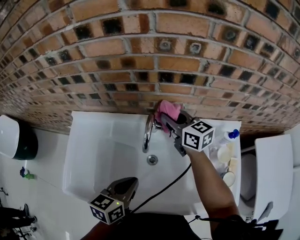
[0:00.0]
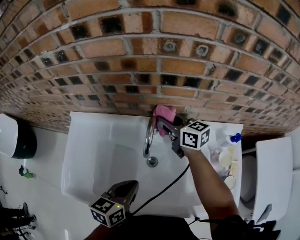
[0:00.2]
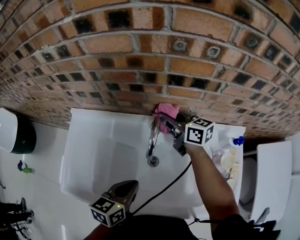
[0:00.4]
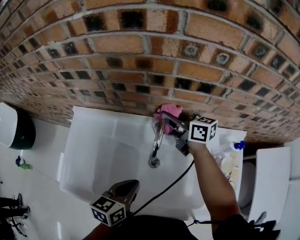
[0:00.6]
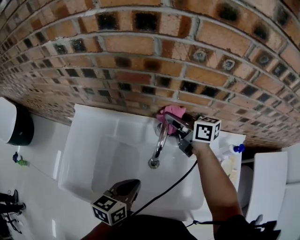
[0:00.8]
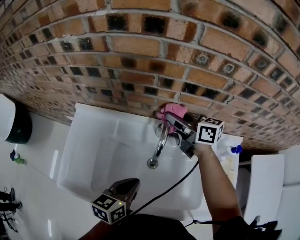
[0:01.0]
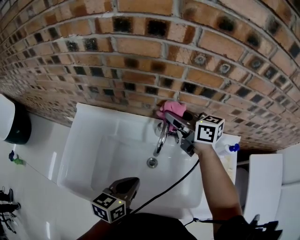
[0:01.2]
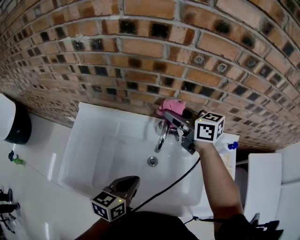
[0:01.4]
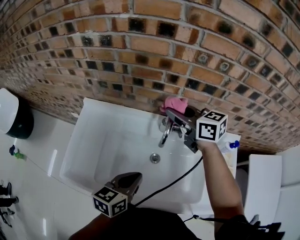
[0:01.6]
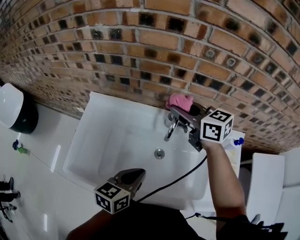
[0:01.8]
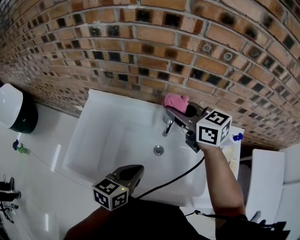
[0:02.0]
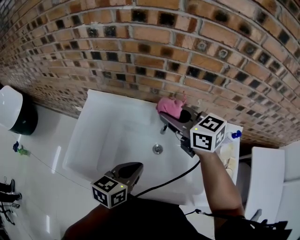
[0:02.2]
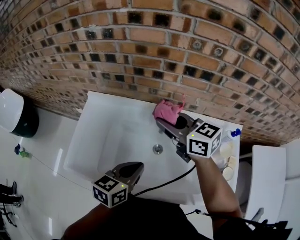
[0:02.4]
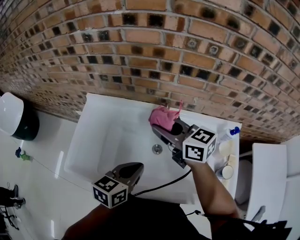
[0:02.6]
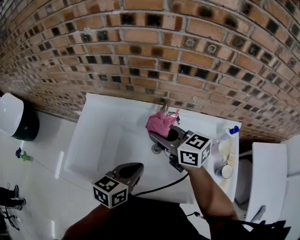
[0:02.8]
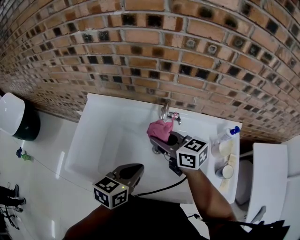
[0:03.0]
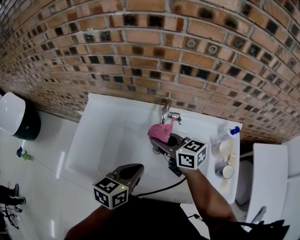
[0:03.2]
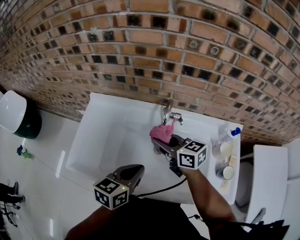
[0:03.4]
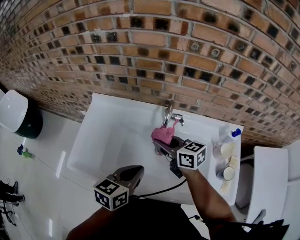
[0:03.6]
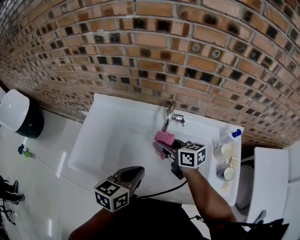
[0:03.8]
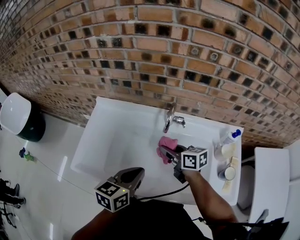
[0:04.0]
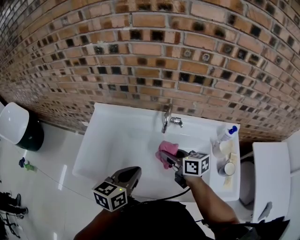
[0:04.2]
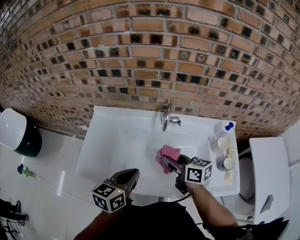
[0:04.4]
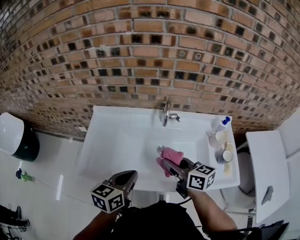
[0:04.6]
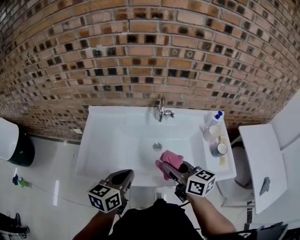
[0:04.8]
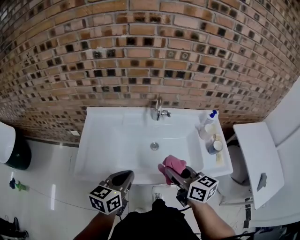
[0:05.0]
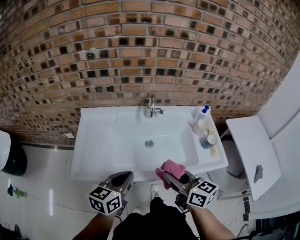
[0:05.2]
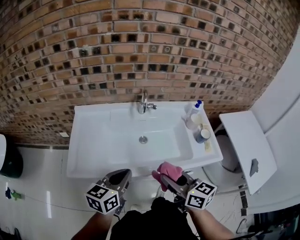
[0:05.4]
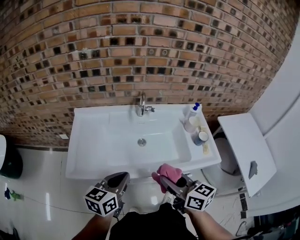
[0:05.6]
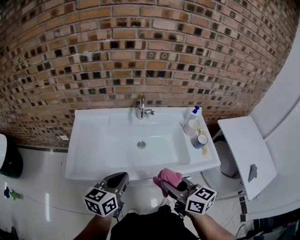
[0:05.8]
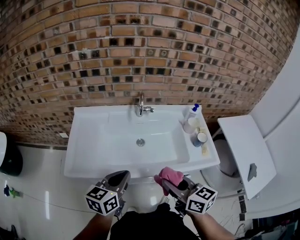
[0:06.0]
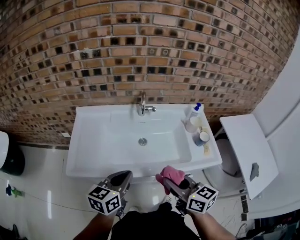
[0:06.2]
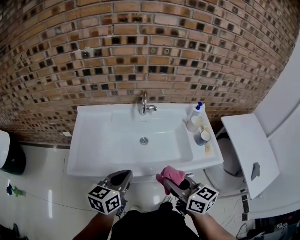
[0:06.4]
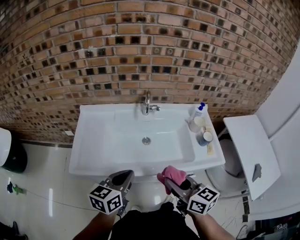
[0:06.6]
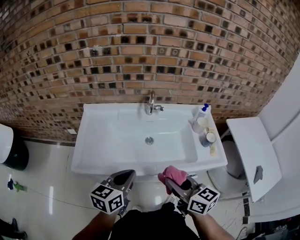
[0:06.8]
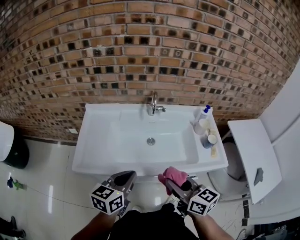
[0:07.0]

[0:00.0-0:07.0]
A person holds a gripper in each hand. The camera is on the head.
0:00.0 to 0:01.4: The right gripper travels upward and to the left by approximately 10 cm.
0:01.4 to 0:02.8: The right gripper heads backward and to the left, covering roughly 15 cm.
0:02.8 to 0:04.2: The left gripper changes place by about 5 cm; the right gripper moves downward and backward, roughly 10 cm, and swivels approximately 20 degrees.
0:04.2 to 0:05.6: The right gripper moves backward, some 25 cm, and rotates roughly 20 degrees, while the left gripper travels backward by some 15 cm.
0:05.6 to 0:07.0: The grippers make only small movements.

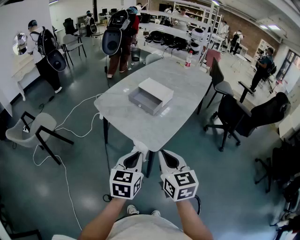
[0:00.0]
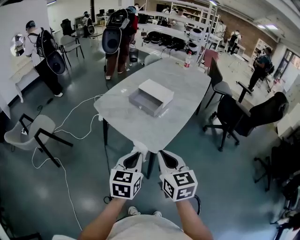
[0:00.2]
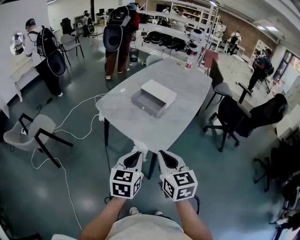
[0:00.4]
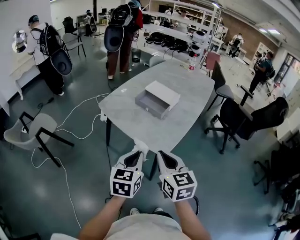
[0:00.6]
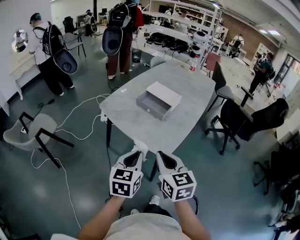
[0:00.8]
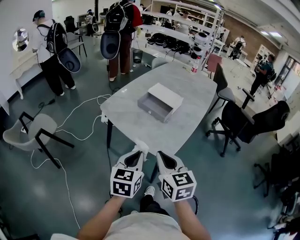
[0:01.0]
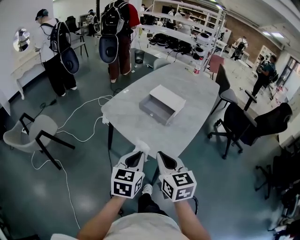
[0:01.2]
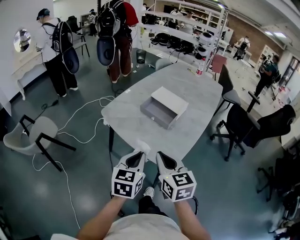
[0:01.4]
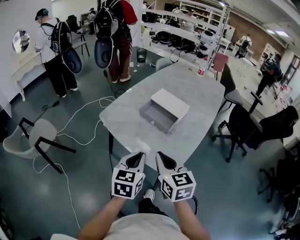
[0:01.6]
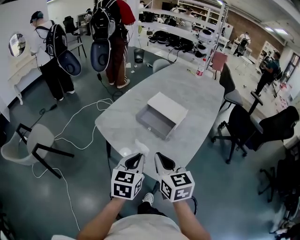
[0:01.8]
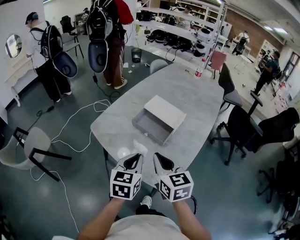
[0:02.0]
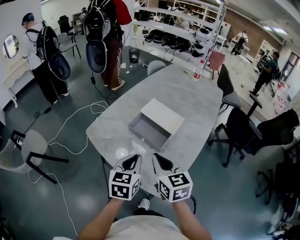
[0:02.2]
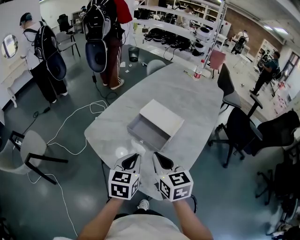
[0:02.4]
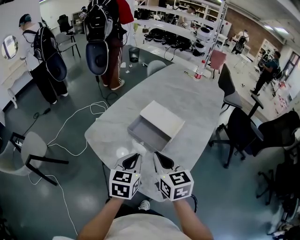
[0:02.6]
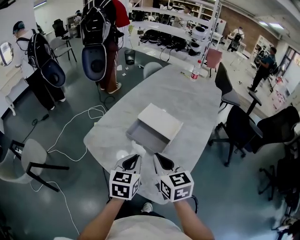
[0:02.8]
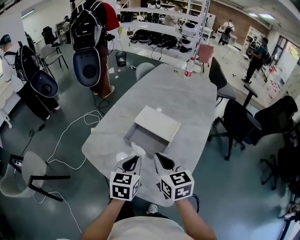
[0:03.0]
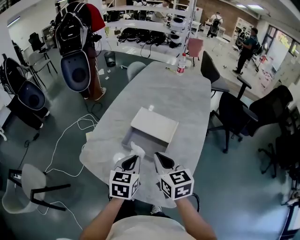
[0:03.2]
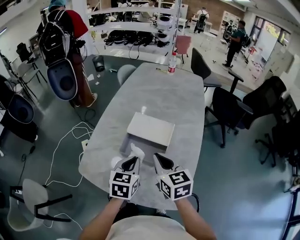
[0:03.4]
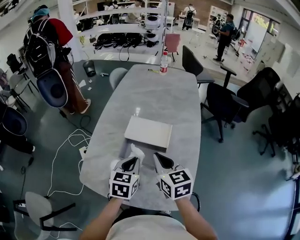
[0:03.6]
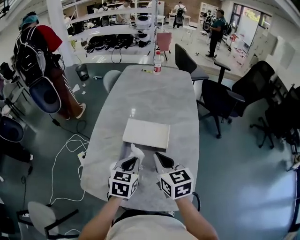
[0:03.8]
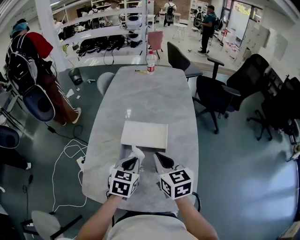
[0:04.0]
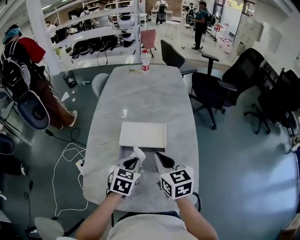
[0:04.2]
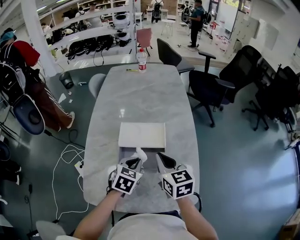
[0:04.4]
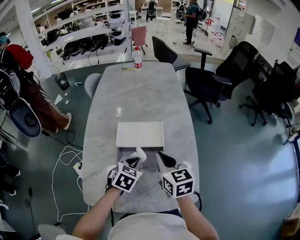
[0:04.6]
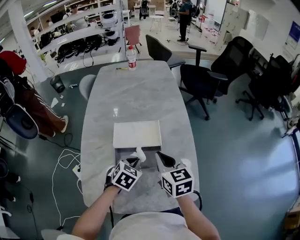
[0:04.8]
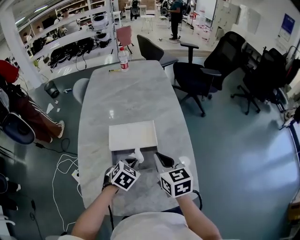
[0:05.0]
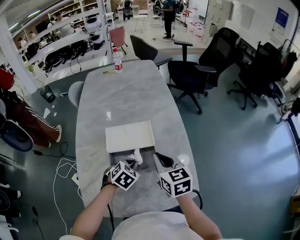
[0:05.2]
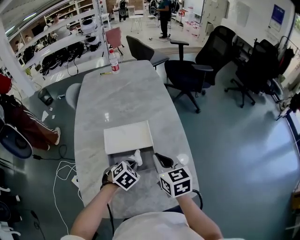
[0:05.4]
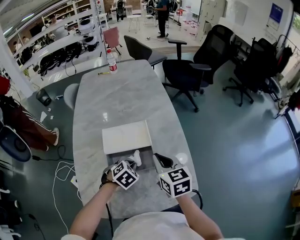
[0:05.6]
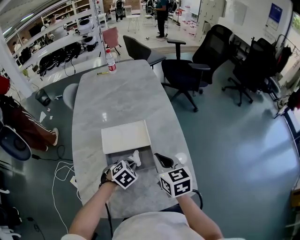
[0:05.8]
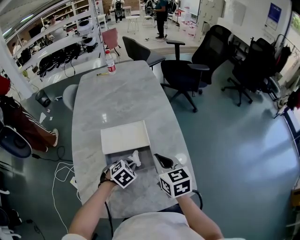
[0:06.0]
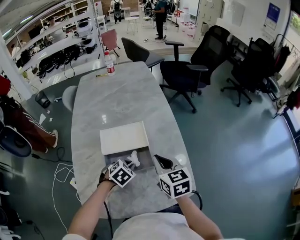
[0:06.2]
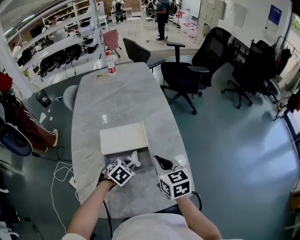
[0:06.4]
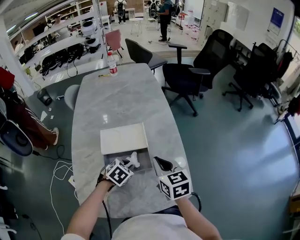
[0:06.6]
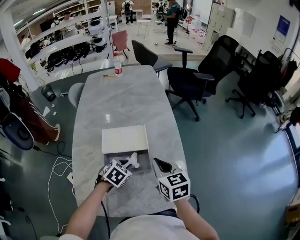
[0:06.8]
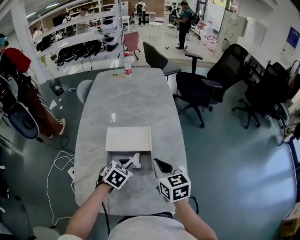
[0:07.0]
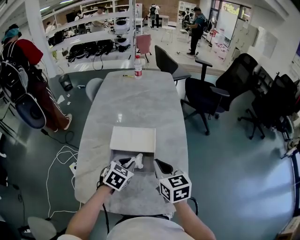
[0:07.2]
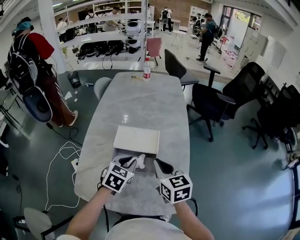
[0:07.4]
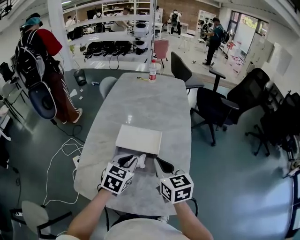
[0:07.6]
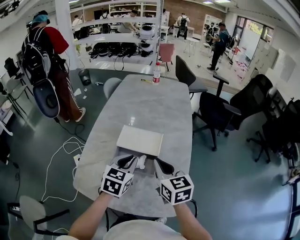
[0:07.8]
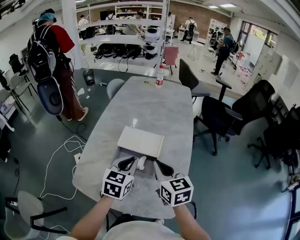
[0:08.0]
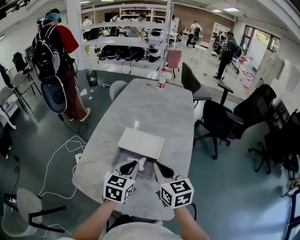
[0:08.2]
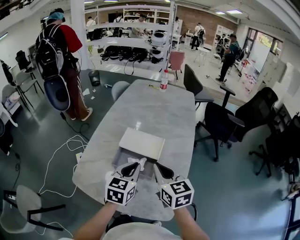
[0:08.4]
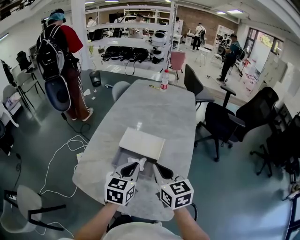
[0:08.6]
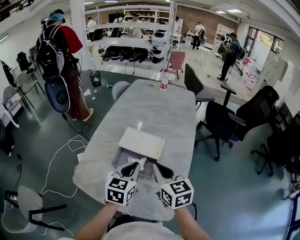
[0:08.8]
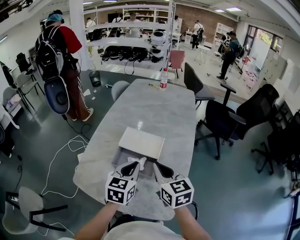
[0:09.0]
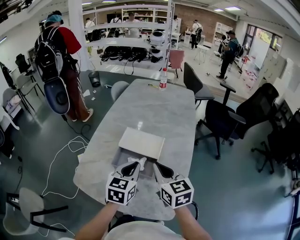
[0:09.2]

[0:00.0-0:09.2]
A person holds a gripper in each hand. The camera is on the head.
0:00.0 to 0:01.6: Both grippers travel together forward and to the left, some 20 cm.
0:01.6 to 0:03.0: The grippers both shift forward by about 20 cm.
0:03.0 to 0:04.6: The left gripper shifts by approximately 15 cm, and rotates about 50 degrees. Meanwhile the right gripper shifts by roughly 10 cm, and rotates about 30 degrees.
0:04.6 to 0:06.2: The right gripper changes place by approximately 5 cm. Meanwhile the left gripper shifts about 5 cm downward, and turns by some 30 degrees.
0:06.2 to 0:07.6: The left gripper travels upward by approximately 15 cm, and swivels approximately 50 degrees; the right gripper is displaced upward by approximately 5 cm, and rotates approximately 20 degrees.
0:07.6 to 0:09.2: The left gripper ends up approximately 5 cm from where it was, and rotates some 20 degrees.

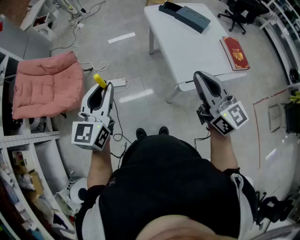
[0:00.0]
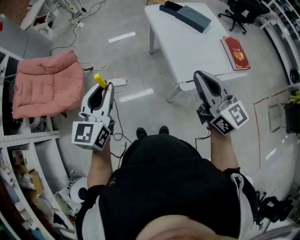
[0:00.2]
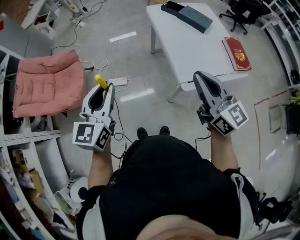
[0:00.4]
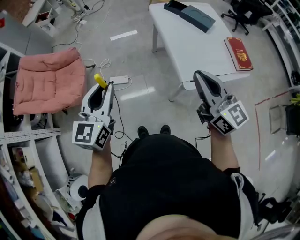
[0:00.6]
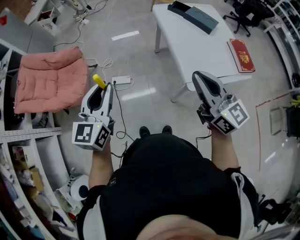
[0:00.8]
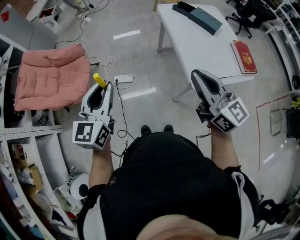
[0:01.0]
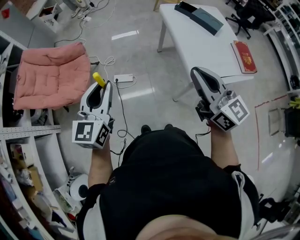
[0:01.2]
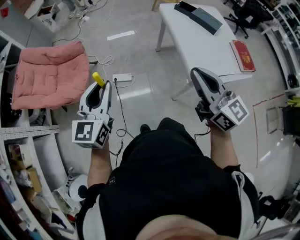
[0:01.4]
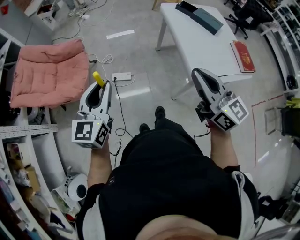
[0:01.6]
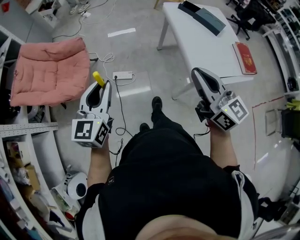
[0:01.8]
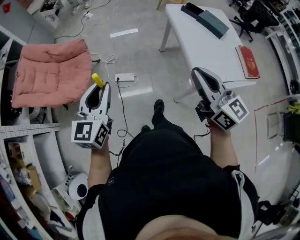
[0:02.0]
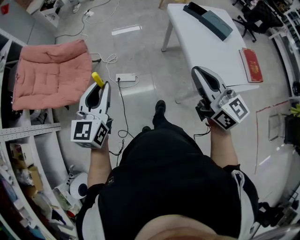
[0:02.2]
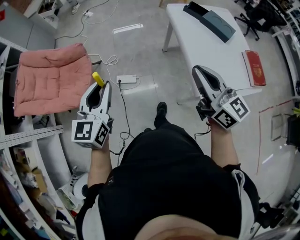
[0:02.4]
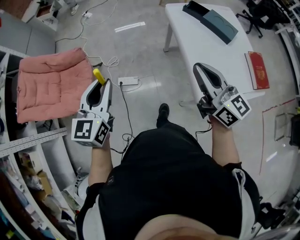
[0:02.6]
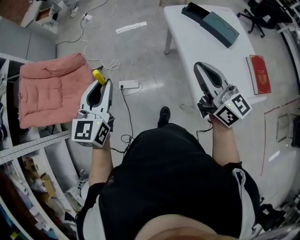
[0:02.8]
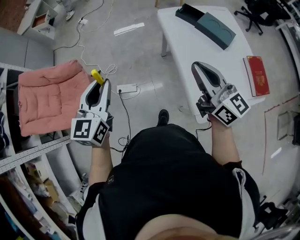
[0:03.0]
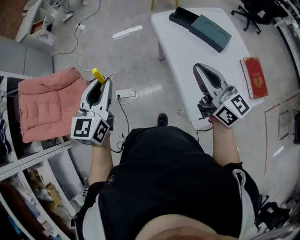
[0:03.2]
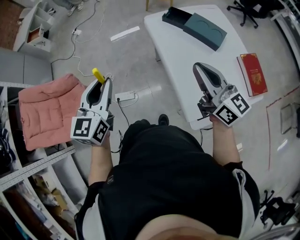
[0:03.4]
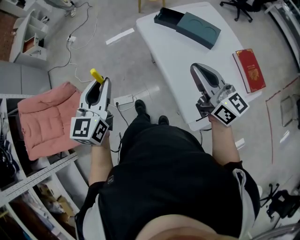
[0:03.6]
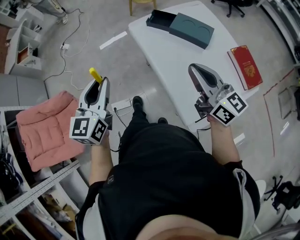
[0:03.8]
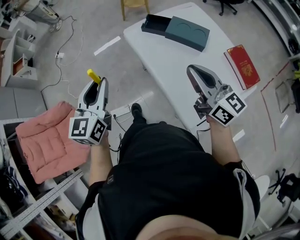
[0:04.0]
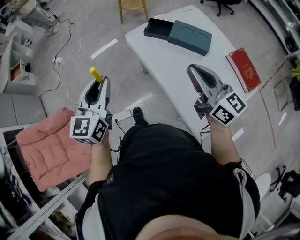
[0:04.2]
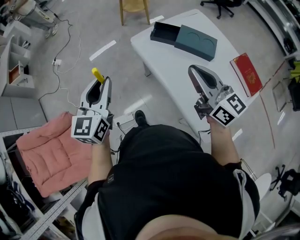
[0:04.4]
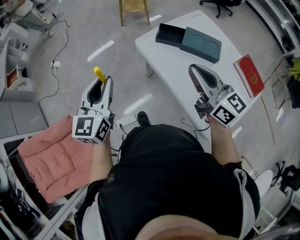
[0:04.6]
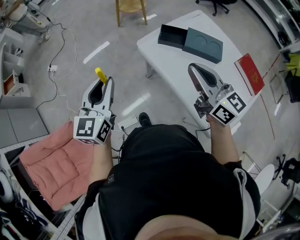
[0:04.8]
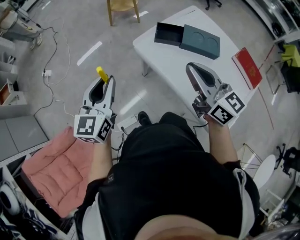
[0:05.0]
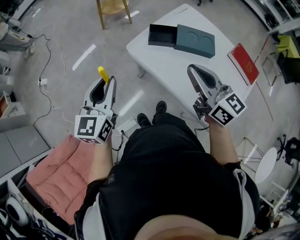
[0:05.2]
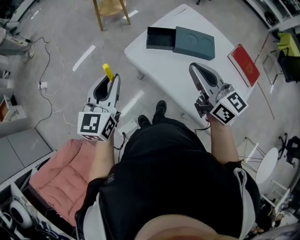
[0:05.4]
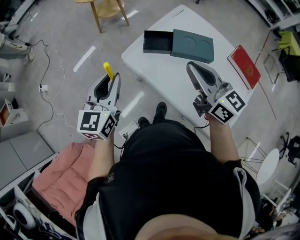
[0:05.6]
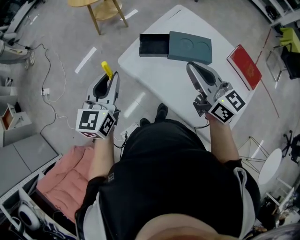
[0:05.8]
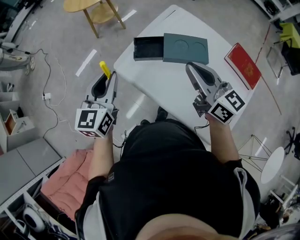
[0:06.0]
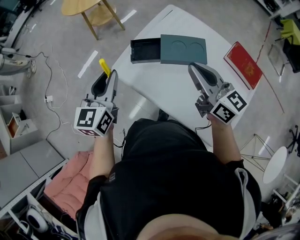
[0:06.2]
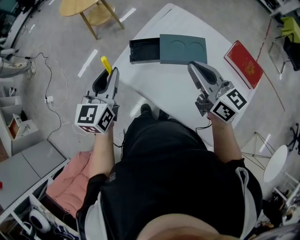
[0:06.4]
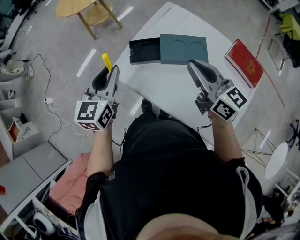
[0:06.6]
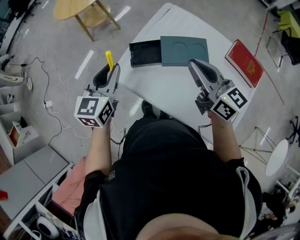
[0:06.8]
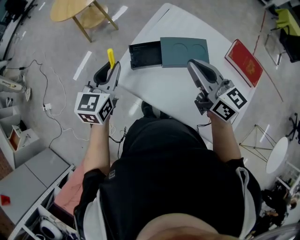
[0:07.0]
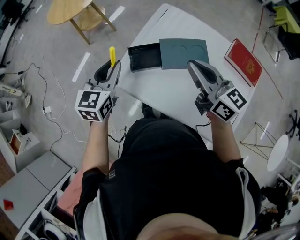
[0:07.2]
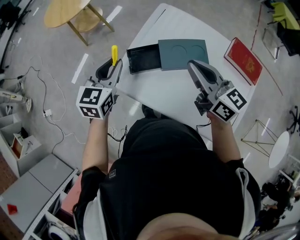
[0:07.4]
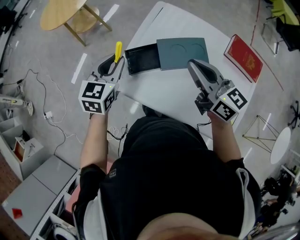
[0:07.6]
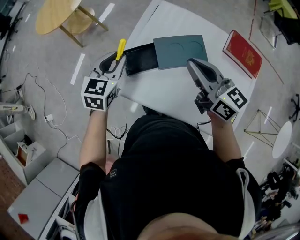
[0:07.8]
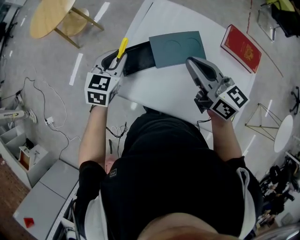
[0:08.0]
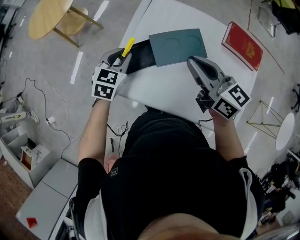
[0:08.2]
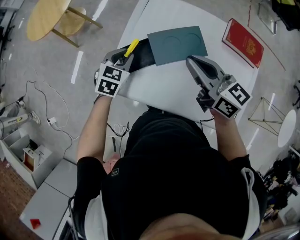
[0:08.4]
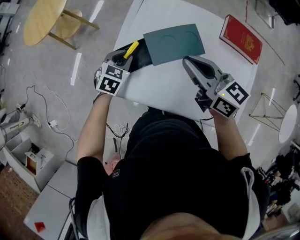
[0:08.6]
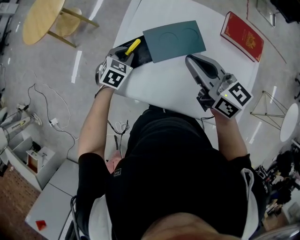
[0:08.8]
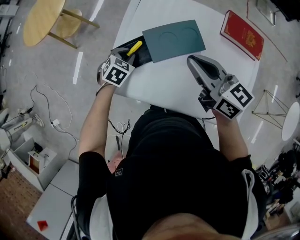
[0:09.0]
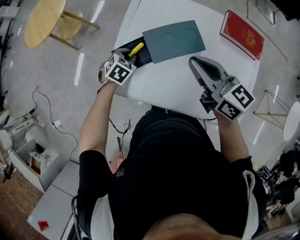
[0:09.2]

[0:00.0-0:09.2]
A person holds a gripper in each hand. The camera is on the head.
0:00.0 to 0:01.6: Both grippers move to the left, roughly 15 cm.
0:01.6 to 0:03.0: Both grippers move forward and to the right, approximately 30 cm.
0:03.0 to 0:04.6: The right gripper is displaced forward by some 20 cm. The left gripper heads forward, covering approximately 30 cm, and changes its angle by approximately 20 degrees.
0:04.6 to 0:06.2: The two grippers go about 20 cm forward and to the right.
0:06.2 to 0:07.6: The left gripper goes about 15 cm forward and downward, and rotates roughly 20 degrees. Meanwhile the right gripper shifts about 10 cm forward.
0:07.6 to 0:09.2: The left gripper heads downward, covering about 20 cm, and points its fingers some 30 degrees further downward.
